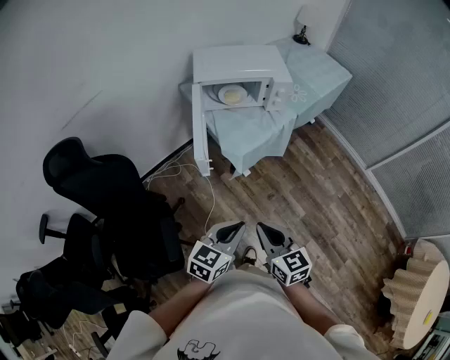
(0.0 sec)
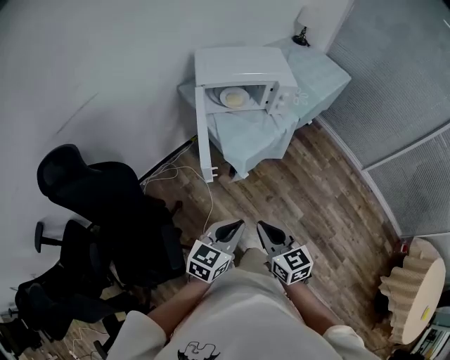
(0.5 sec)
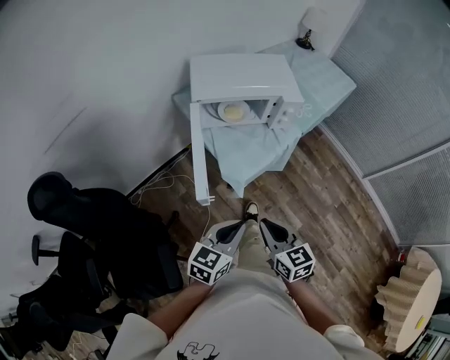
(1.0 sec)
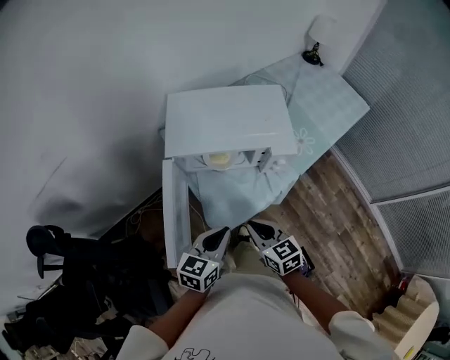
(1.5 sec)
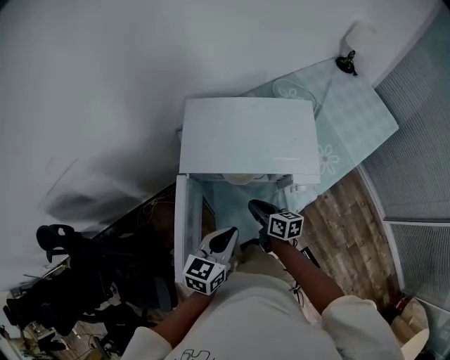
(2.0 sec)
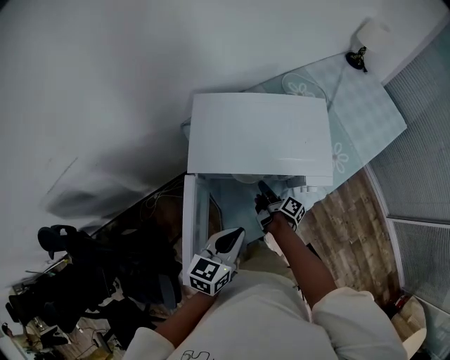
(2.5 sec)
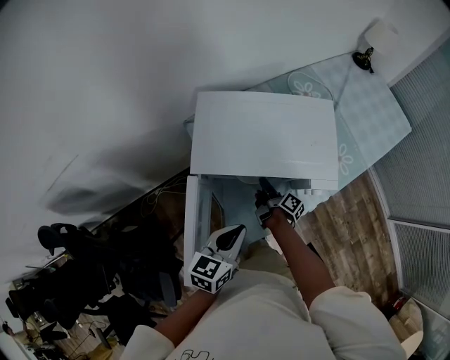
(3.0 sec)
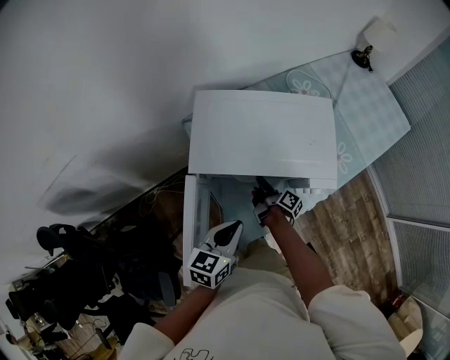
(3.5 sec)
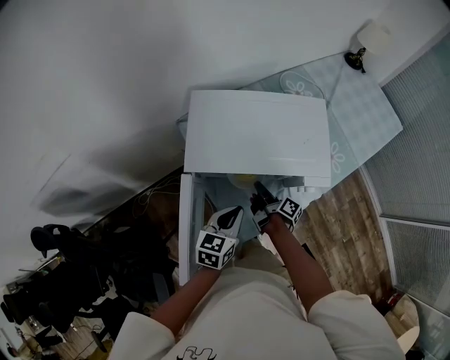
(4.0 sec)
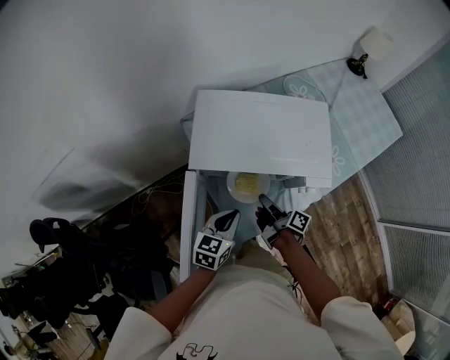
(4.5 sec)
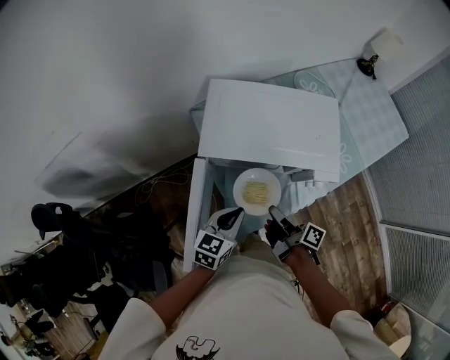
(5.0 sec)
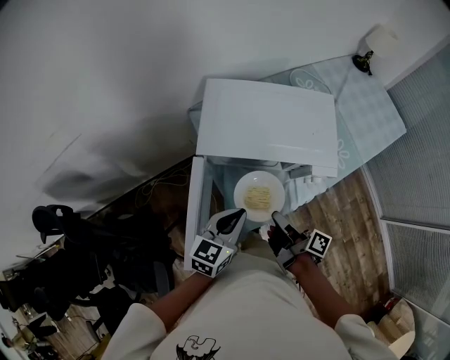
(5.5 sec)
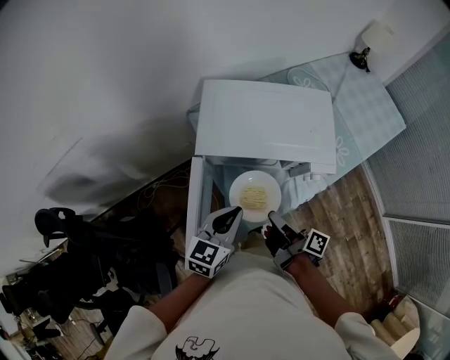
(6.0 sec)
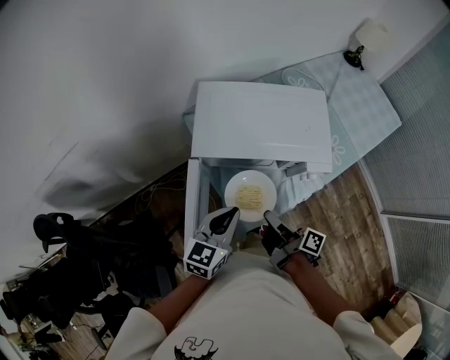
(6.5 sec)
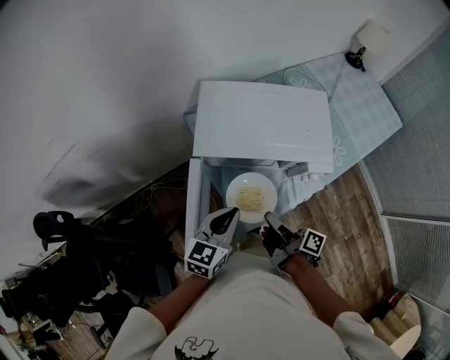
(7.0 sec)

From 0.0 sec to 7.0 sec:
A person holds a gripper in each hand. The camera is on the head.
From 0.0 sec to 2.0 sec: The left gripper shifts by about 40 cm, and changes its angle by roughly 20 degrees.
From 5.0 sec to 7.0 sec: The left gripper moves upward, some 5 cm.

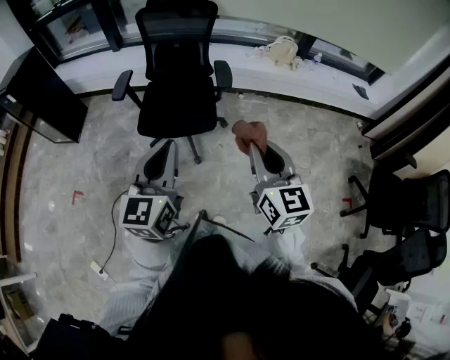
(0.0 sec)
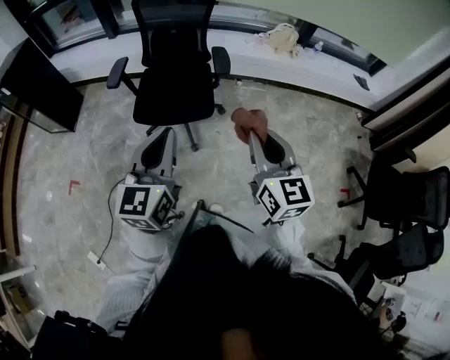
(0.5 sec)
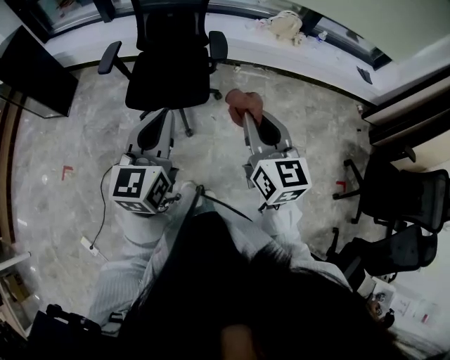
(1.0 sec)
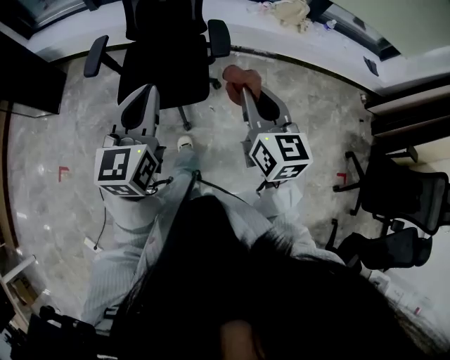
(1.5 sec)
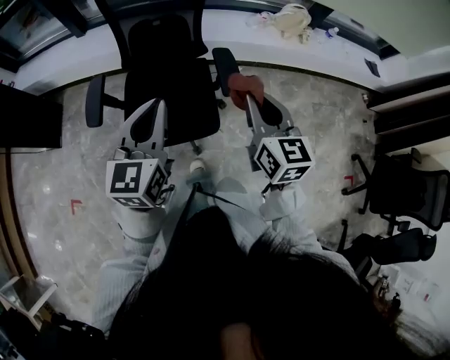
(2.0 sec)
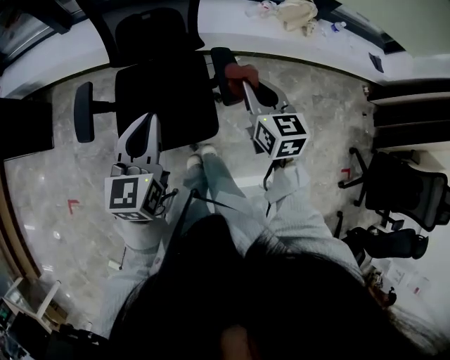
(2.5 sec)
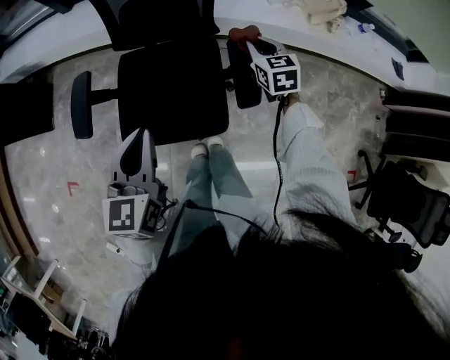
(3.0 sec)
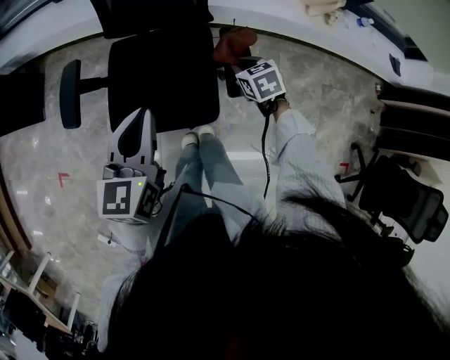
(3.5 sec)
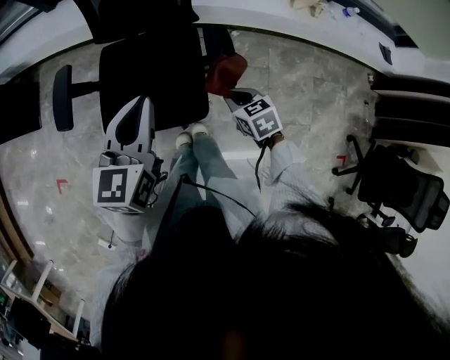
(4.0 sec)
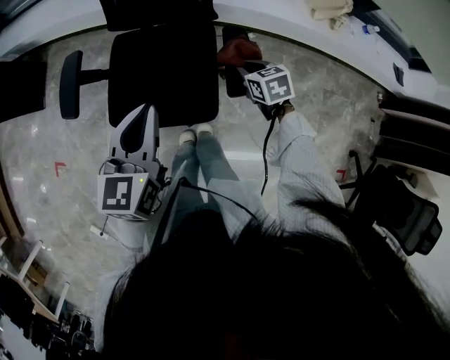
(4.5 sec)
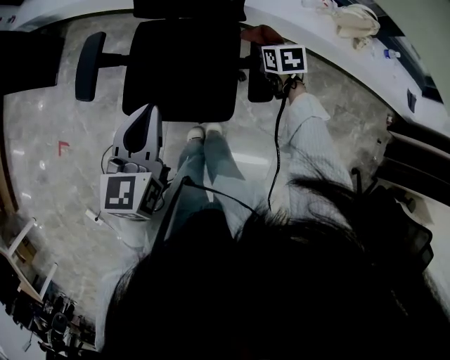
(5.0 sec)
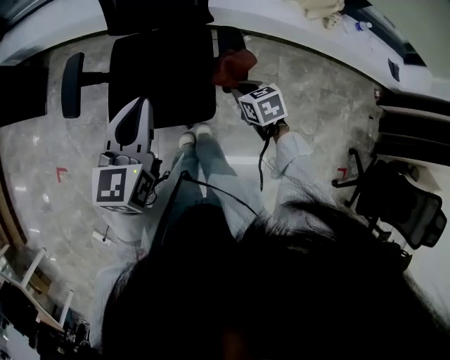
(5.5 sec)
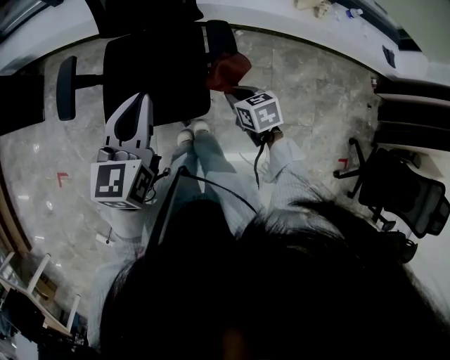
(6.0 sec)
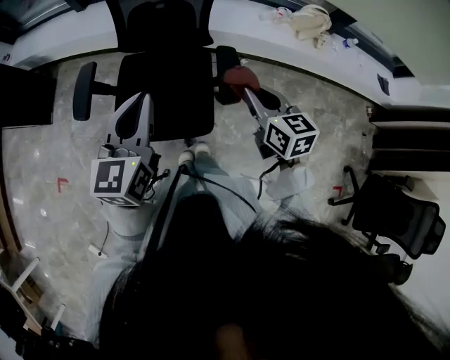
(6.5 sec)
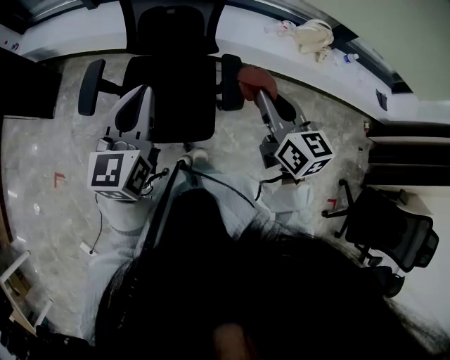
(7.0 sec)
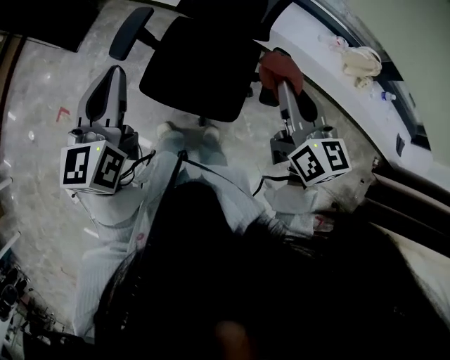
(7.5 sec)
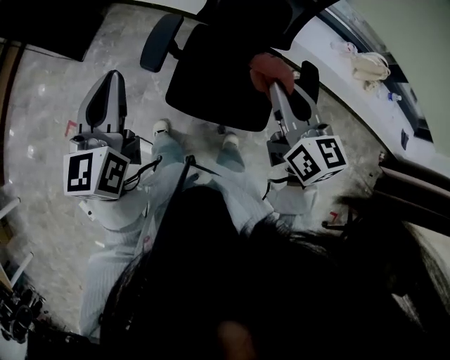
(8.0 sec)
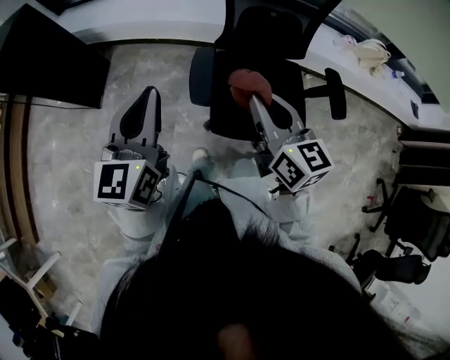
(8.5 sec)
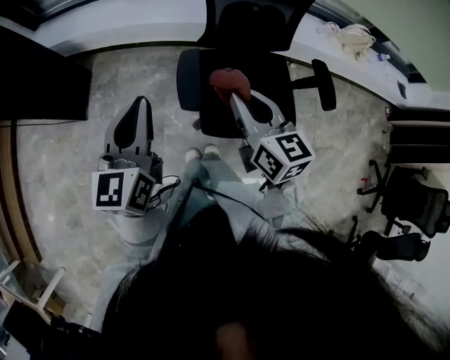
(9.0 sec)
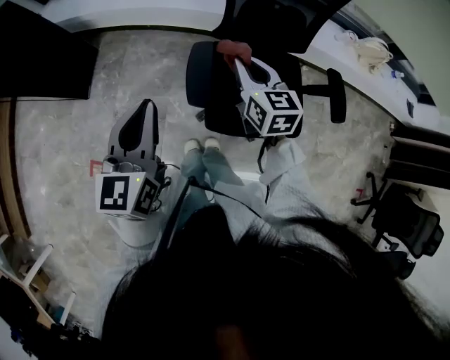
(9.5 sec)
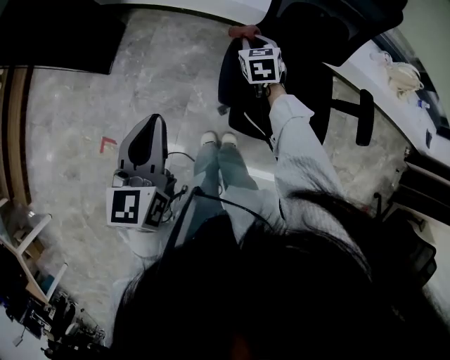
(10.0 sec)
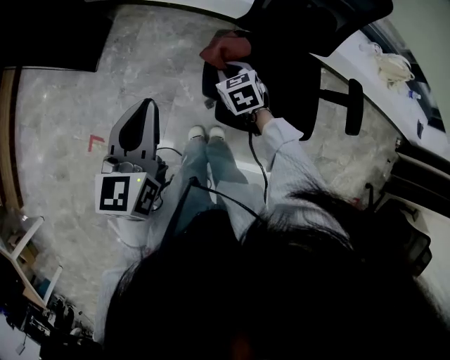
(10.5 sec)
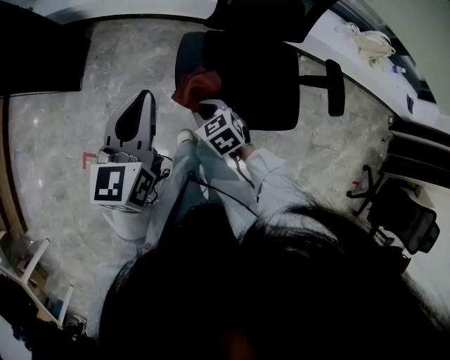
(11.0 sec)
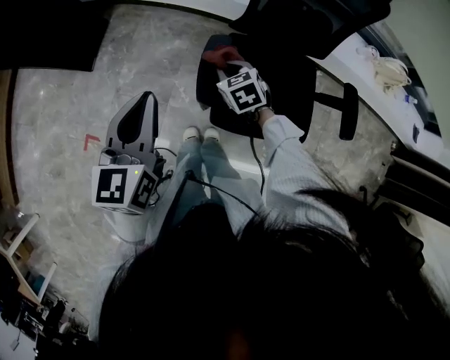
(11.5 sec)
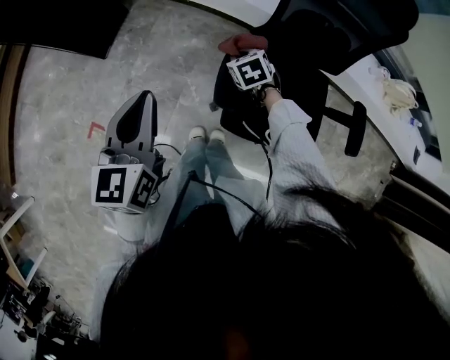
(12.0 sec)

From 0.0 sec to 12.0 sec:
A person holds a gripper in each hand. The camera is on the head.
From 0.0 sec to 2.0 sec: Both grippers are carried forward, some 40 cm.
From 2.0 sec to 4.0 sec: The left gripper heads downward and forward, covering some 15 cm. Meanwhile the right gripper is displaced downward by approximately 30 cm, and angles its fingers downward, by roughly 40 degrees.
From 4.0 sec to 6.0 sec: The right gripper travels forward and back again, approximately 20 cm each way.
From 6.0 sec to 8.0 sec: The left gripper goes approximately 35 cm to the left, and swivels roughly 30 degrees. Meanwhile the right gripper moves upward and to the left, about 40 cm, and angles its fingers upward, by some 40 degrees.
From 8.0 sec to 10.0 sec: The left gripper is displaced to the left, downward and forward by approximately 20 cm; the right gripper is displaced forward, to the left and downward by about 50 cm, and angles its fingers downward, by some 30 degrees.
From 10.0 sec to 12.0 sec: The left gripper goes to the right and returns, about 10 cm each way; the right gripper goes backward and returns, some 25 cm each way, and rotates approximately 30 degrees.

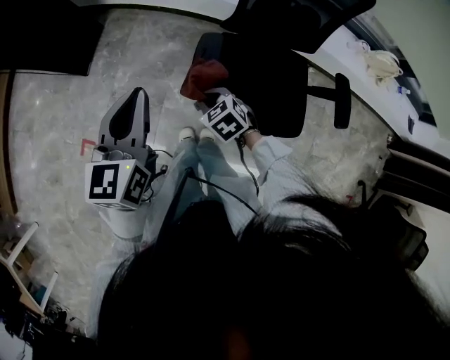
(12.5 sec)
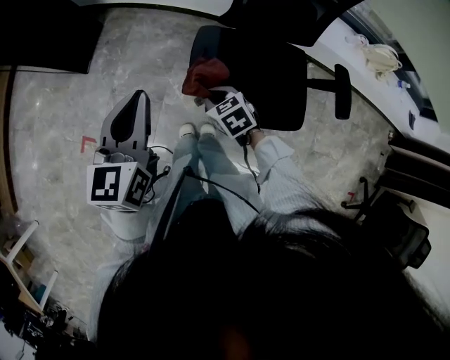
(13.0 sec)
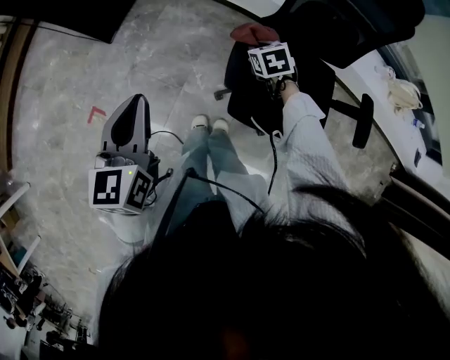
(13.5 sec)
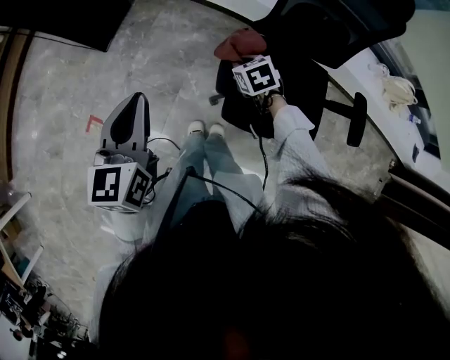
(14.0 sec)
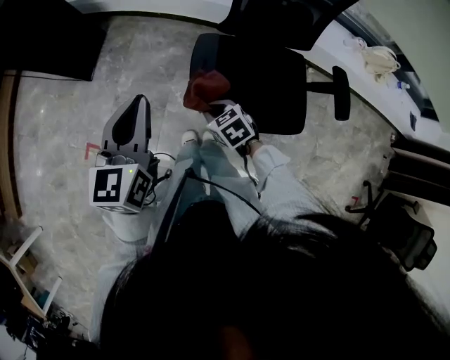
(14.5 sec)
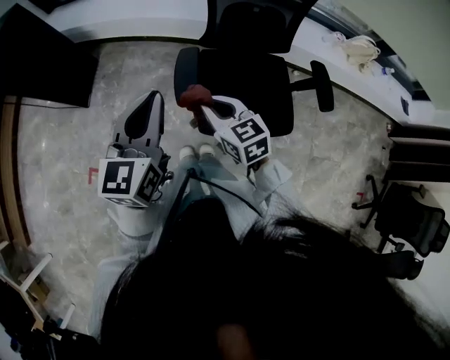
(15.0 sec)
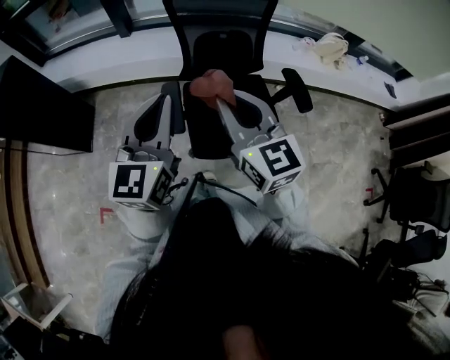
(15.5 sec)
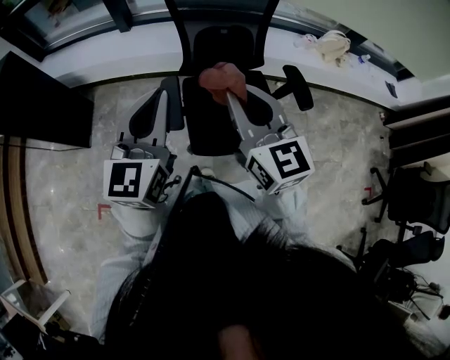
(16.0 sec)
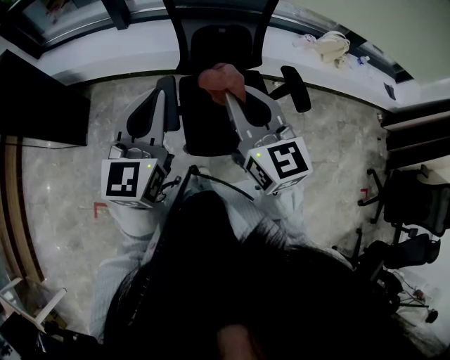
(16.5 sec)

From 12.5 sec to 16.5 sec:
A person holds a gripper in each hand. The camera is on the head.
From 12.5 sec to 14.5 sec: The right gripper goes forward and backward, roughly 20 cm each way, reversing 2 times; the left gripper shifts about 5 cm backward, and travels to the left and back again, roughly 10 cm each way.
From 14.5 sec to 16.5 sec: The right gripper moves upward, roughly 40 cm, and angles its fingers upward, by roughly 50 degrees. The left gripper ends up approximately 20 cm from where it was, and rotates about 20 degrees.

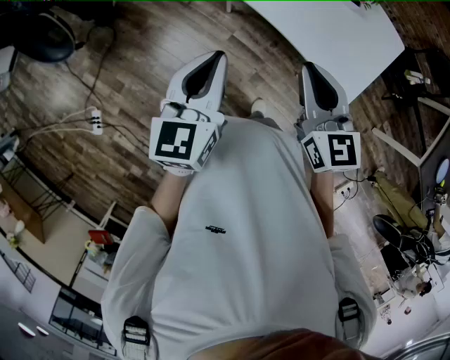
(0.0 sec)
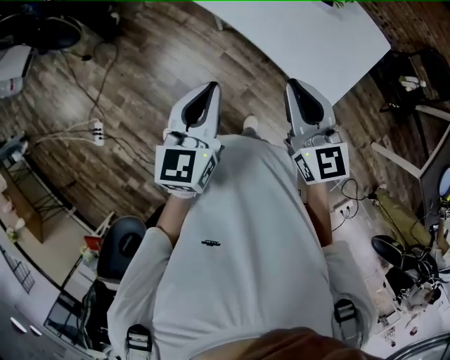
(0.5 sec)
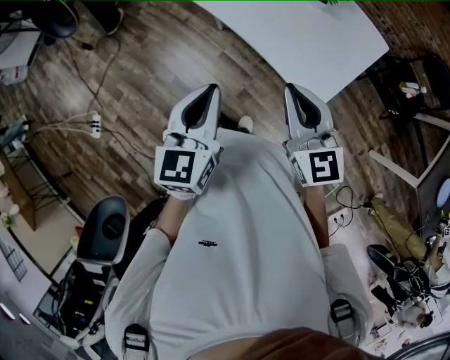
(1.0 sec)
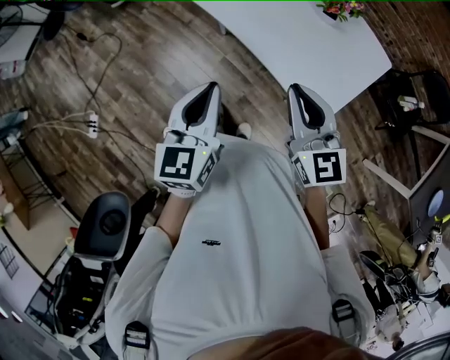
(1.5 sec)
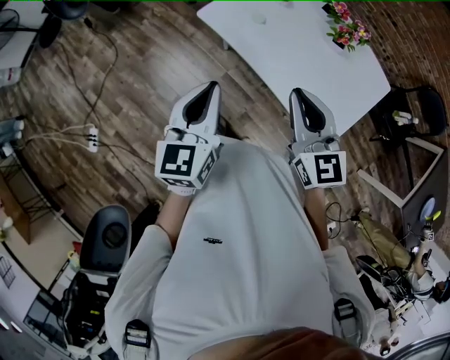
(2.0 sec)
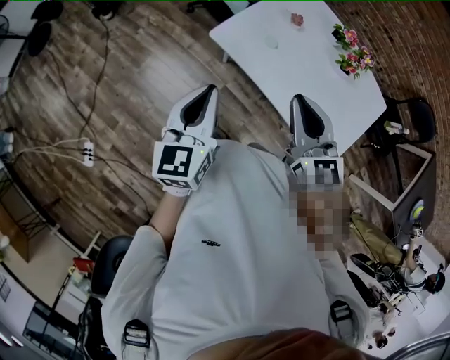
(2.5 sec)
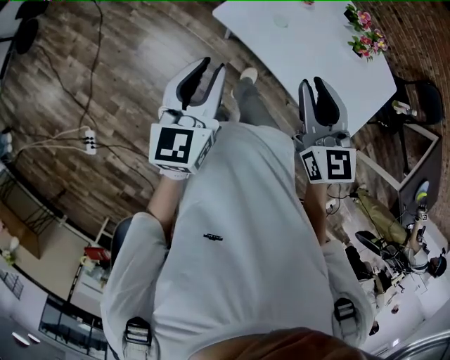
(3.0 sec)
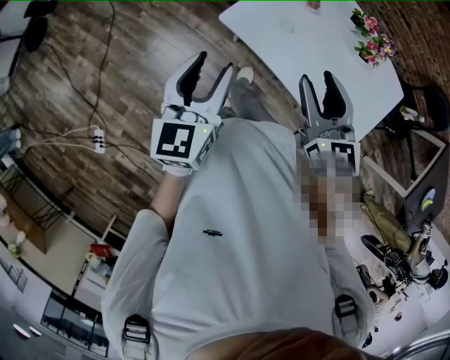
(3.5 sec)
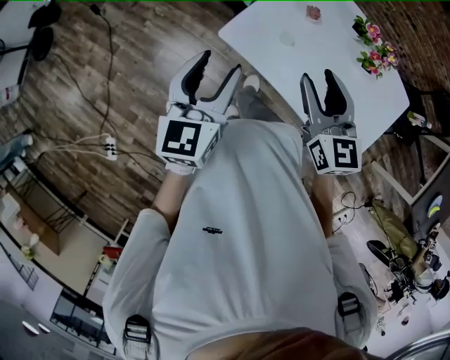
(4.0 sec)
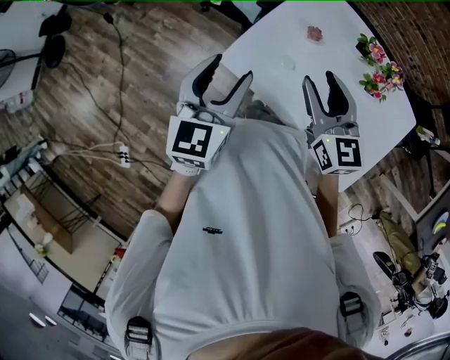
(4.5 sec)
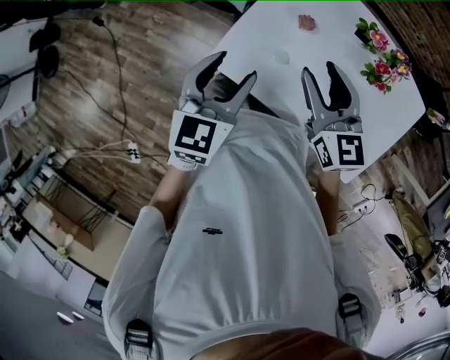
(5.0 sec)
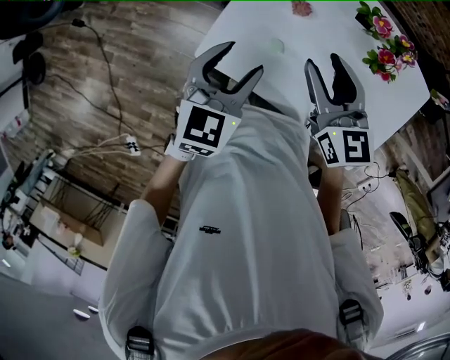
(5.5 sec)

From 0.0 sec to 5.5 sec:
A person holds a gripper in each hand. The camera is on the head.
From 0.0 sec to 2.0 sec: The right gripper travels to the right and forward by approximately 10 cm, while the left gripper heads to the right, covering approximately 5 cm.
From 2.0 sec to 3.5 sec: The two grippers go roughly 15 cm forward and to the left. The left gripper opens its fingers, while the right gripper opens its fingers.
From 3.5 sec to 5.5 sec: The right gripper travels forward by approximately 20 cm, while the left gripper goes about 25 cm forward and to the right, and rotates some 40 degrees.
